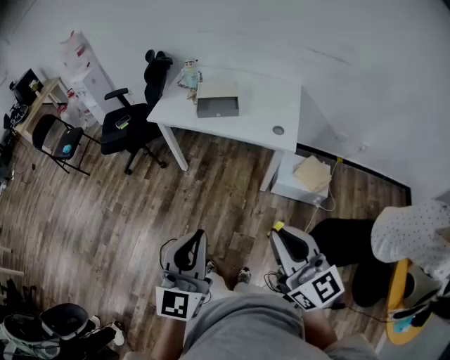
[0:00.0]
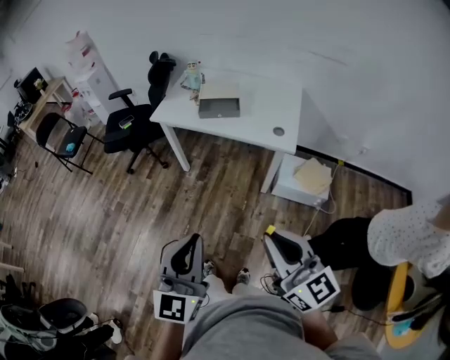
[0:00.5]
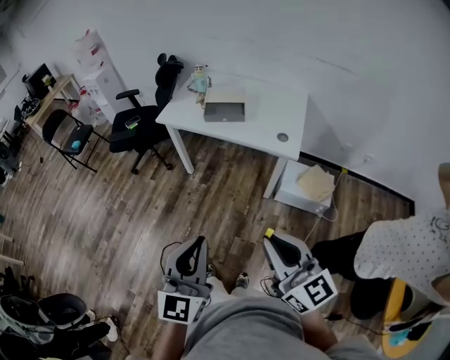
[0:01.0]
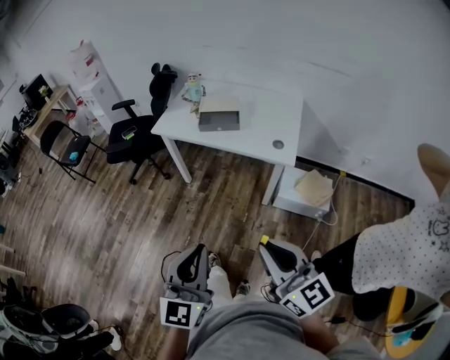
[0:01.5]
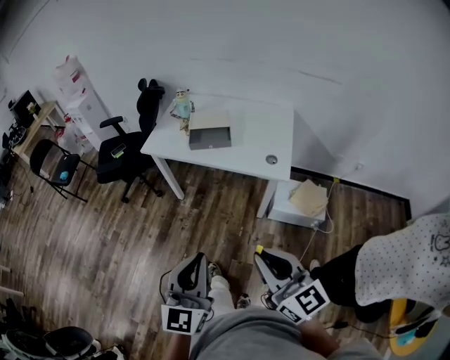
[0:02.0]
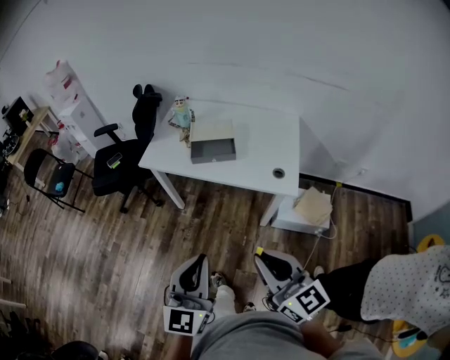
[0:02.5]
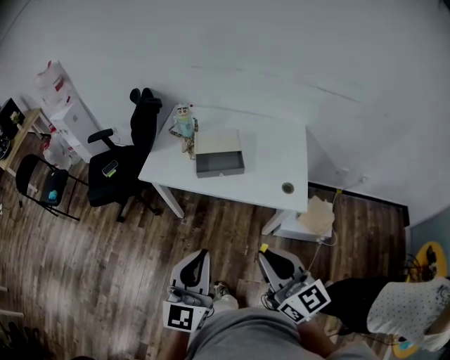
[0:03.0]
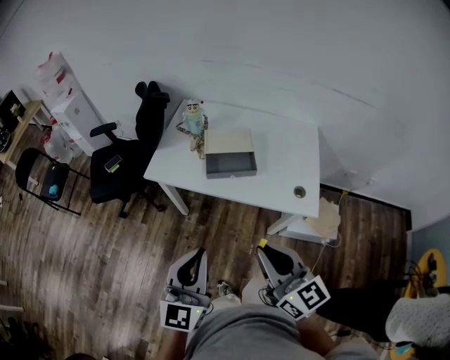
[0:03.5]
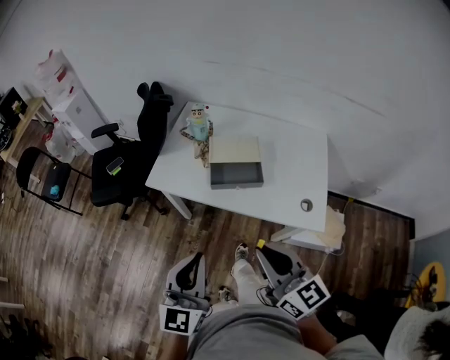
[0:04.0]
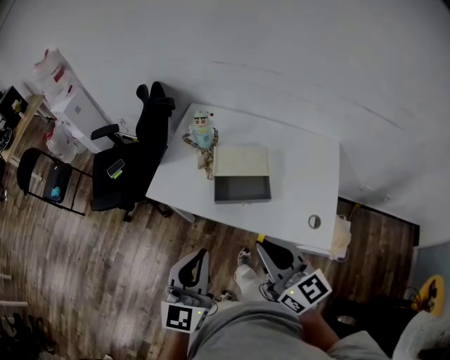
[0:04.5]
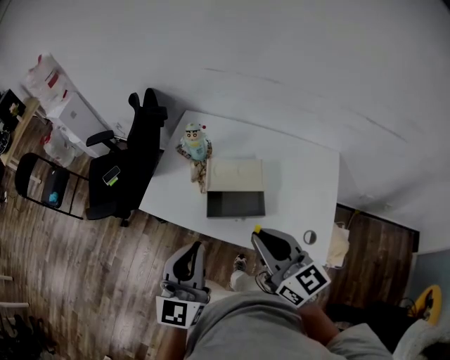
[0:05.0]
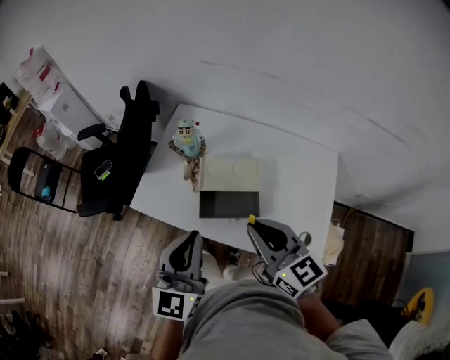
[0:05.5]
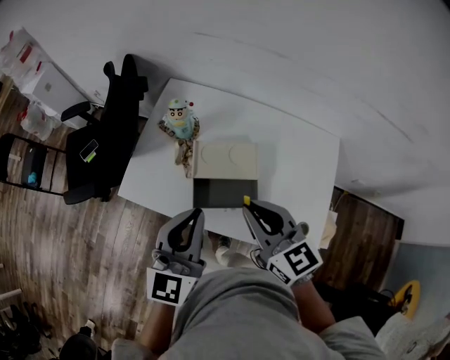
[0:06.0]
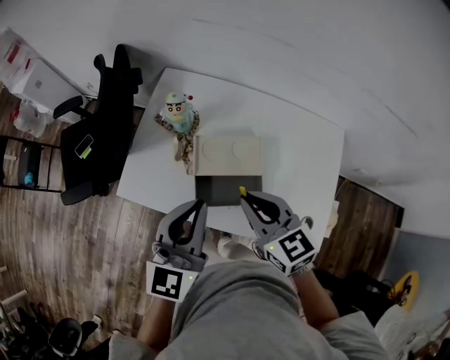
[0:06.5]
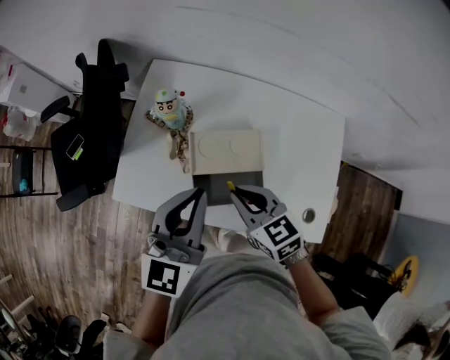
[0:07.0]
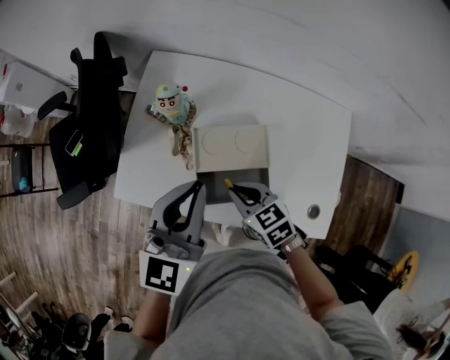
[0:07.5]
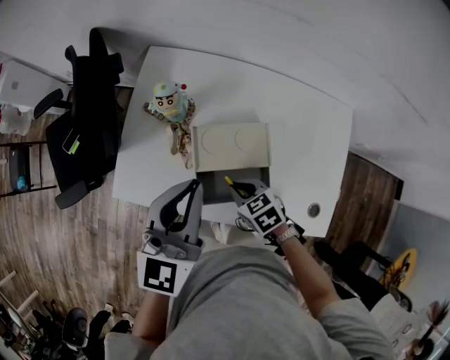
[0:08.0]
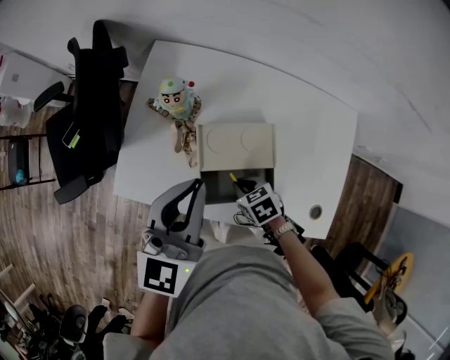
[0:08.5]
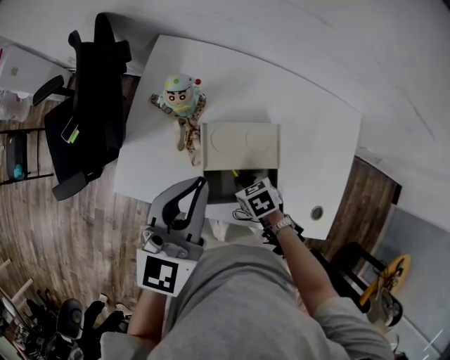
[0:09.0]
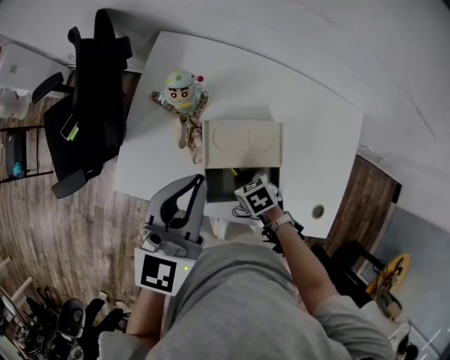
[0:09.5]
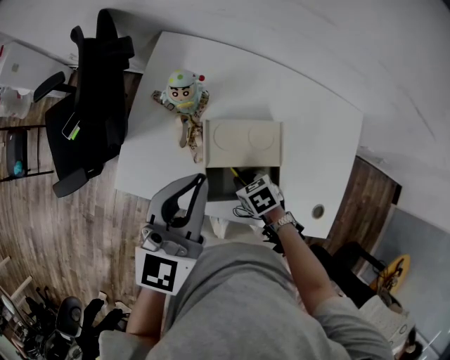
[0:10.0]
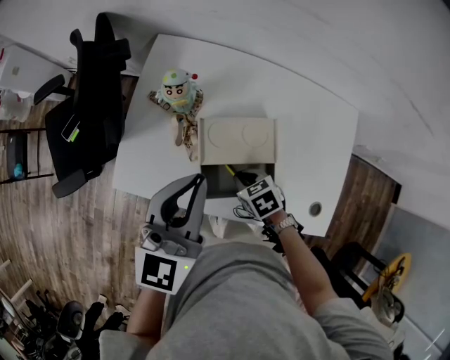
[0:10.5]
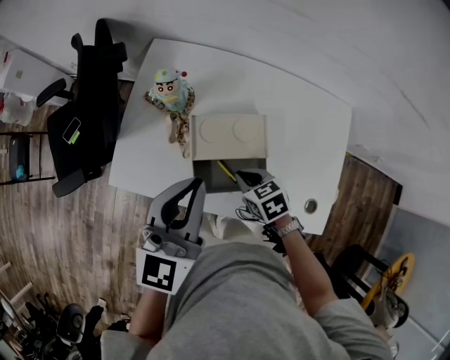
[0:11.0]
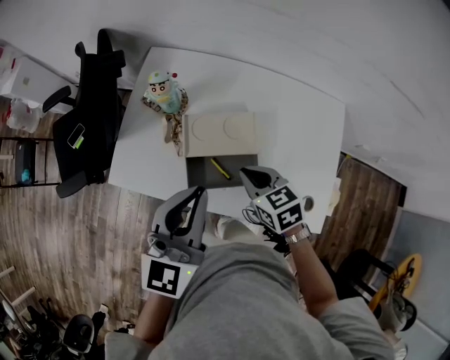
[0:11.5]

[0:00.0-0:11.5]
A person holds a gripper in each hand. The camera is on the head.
0:00.0 to 0:02.0: The left gripper changes place by roughly 5 cm. Meanwhile the right gripper moves approximately 5 cm.
0:02.0 to 0:04.0: The grippers both shift forward by approximately 35 cm.
0:04.0 to 0:06.0: The two grippers go approximately 30 cm forward.
0:06.0 to 0:07.5: The left gripper shifts about 10 cm forward. The right gripper heads downward, covering approximately 20 cm, and changes its angle by about 30 degrees.
0:07.5 to 0:09.5: The right gripper goes some 15 cm downward, and swivels some 30 degrees.
0:09.5 to 0:11.5: The left gripper is displaced backward by approximately 10 cm. Meanwhile the right gripper shifts some 15 cm upward, and turns by about 30 degrees.

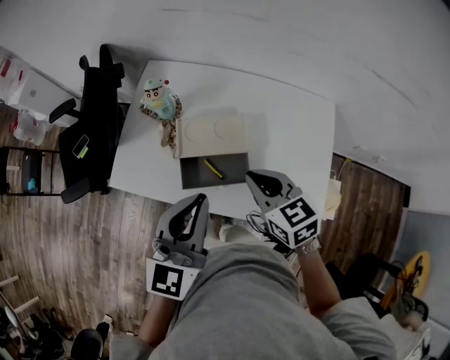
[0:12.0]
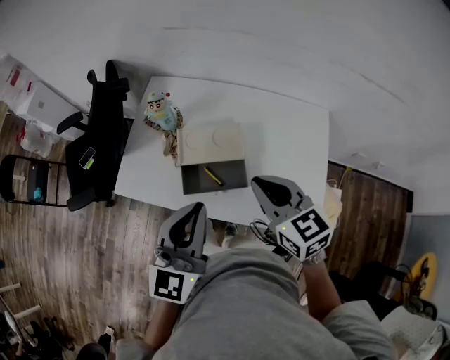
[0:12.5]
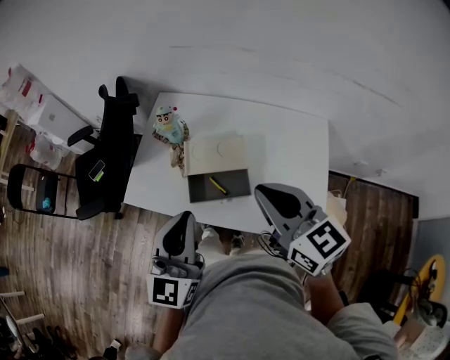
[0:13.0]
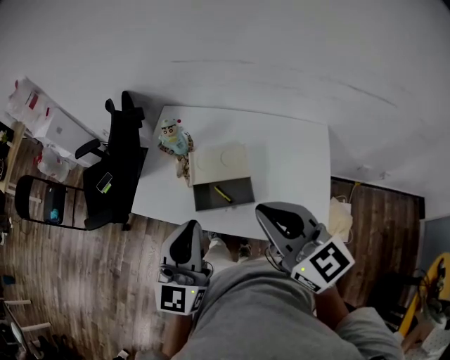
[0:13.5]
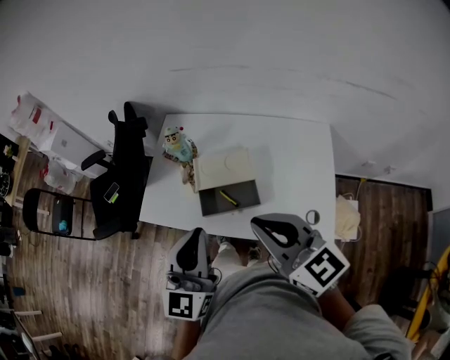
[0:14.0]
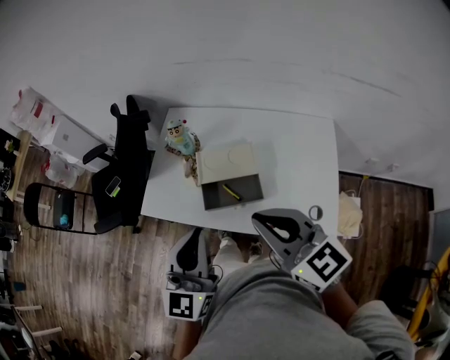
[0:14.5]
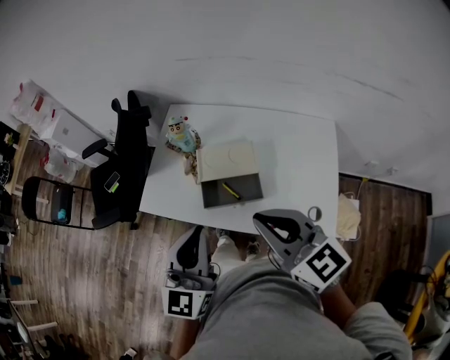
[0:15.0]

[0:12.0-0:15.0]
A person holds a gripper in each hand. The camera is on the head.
0:12.0 to 0:13.5: The left gripper moves backward and upward, roughly 10 cm. Meanwhile the right gripper moves upward and backward, some 20 cm, and turns by about 30 degrees.
0:13.5 to 0:15.0: There are only small adjustments of the grippers.

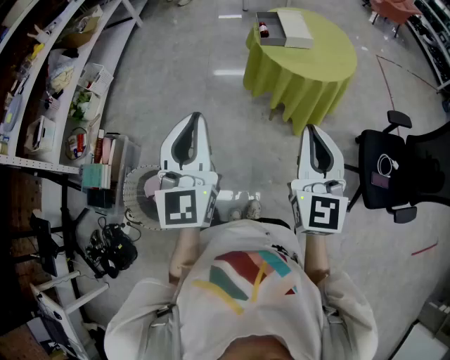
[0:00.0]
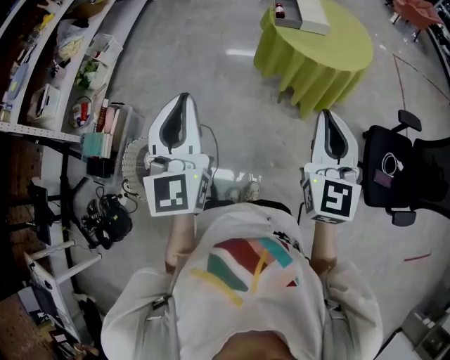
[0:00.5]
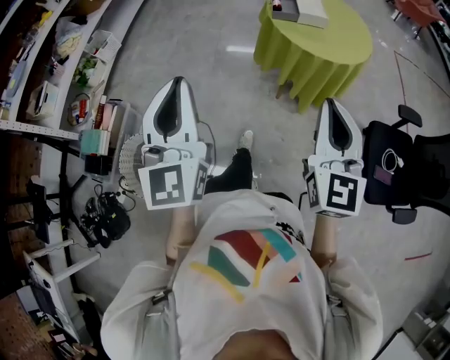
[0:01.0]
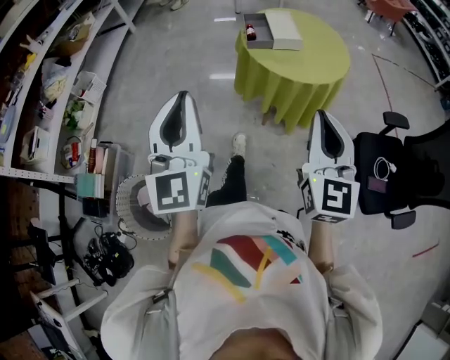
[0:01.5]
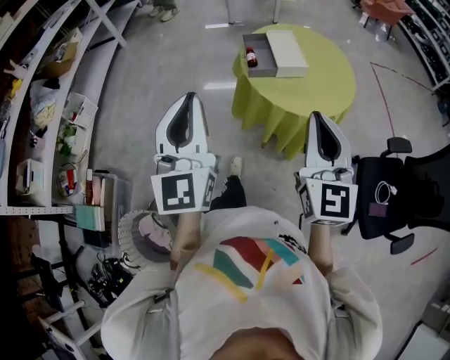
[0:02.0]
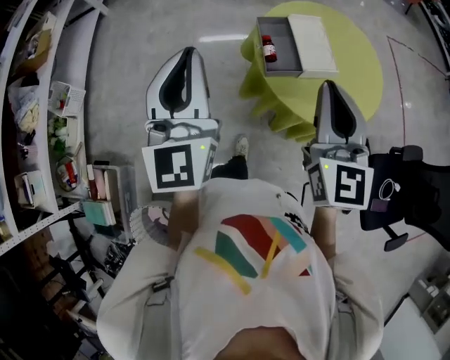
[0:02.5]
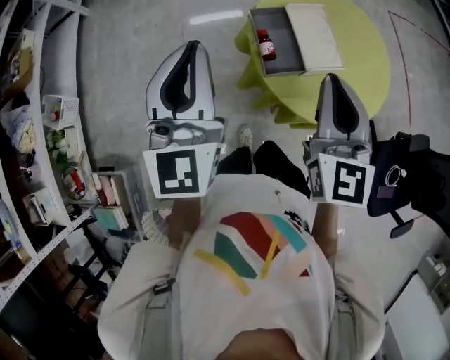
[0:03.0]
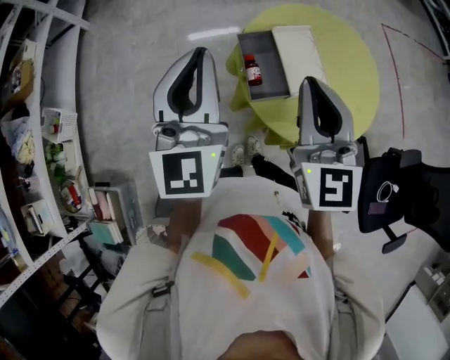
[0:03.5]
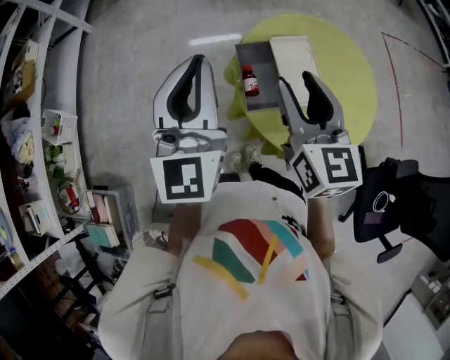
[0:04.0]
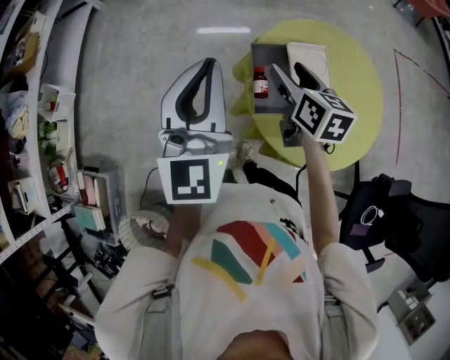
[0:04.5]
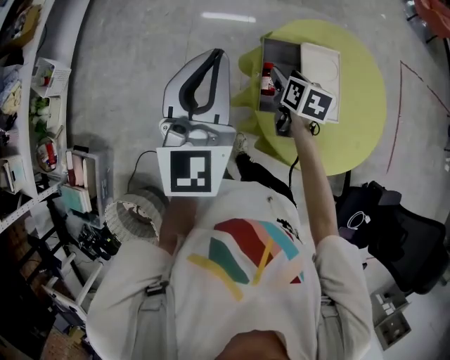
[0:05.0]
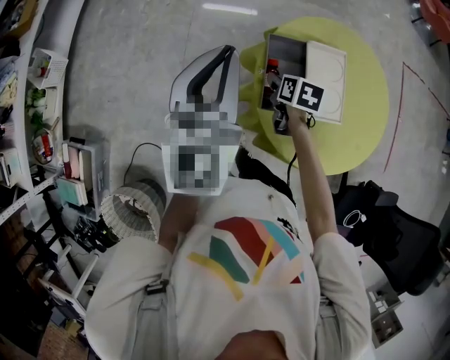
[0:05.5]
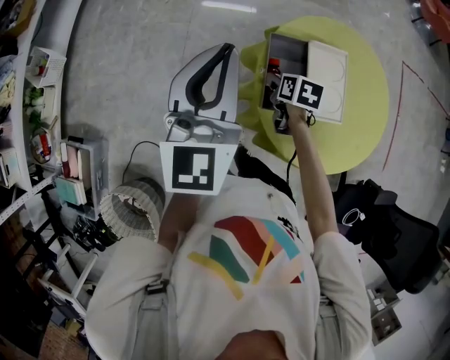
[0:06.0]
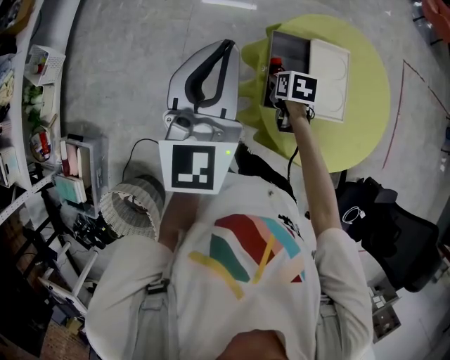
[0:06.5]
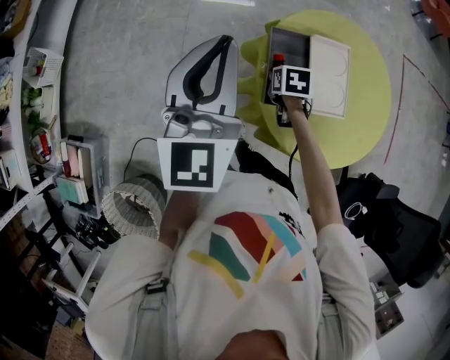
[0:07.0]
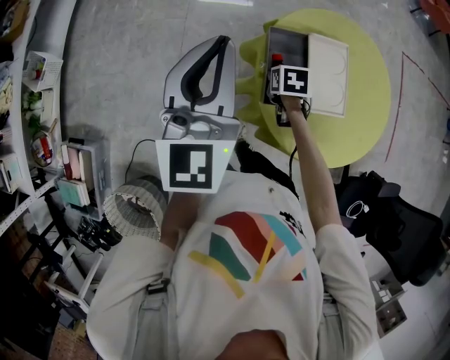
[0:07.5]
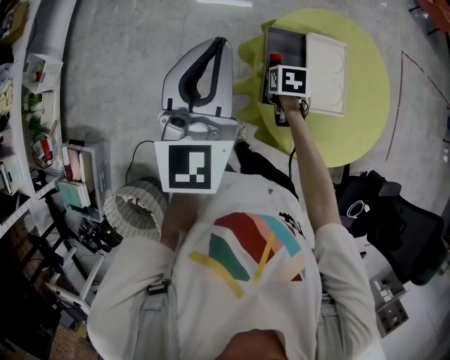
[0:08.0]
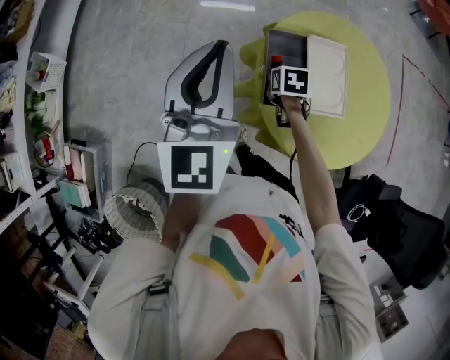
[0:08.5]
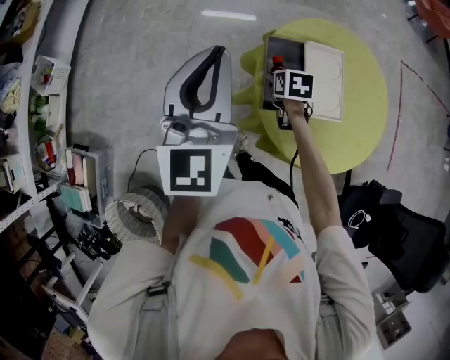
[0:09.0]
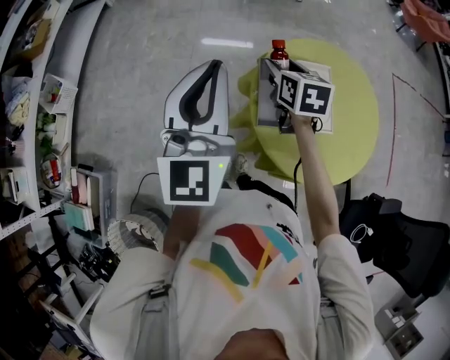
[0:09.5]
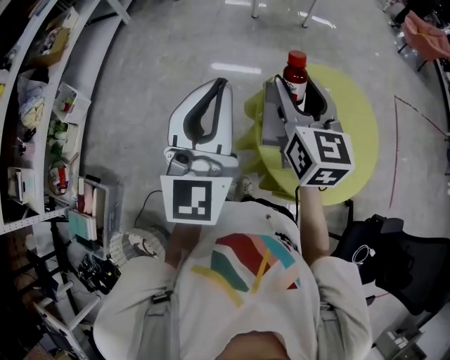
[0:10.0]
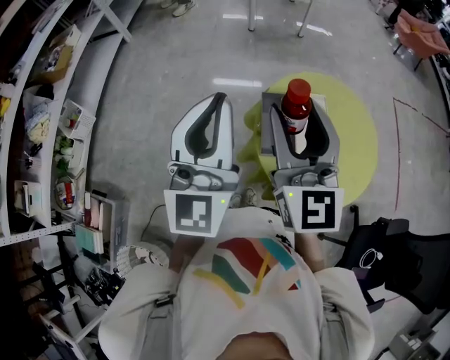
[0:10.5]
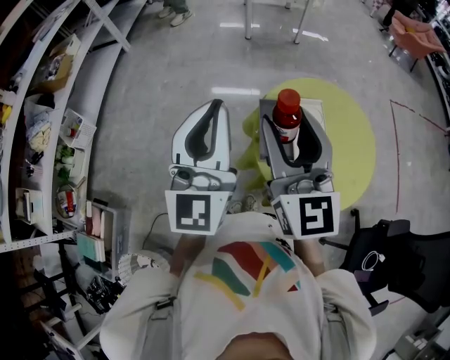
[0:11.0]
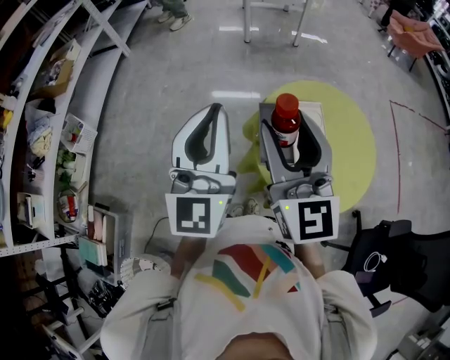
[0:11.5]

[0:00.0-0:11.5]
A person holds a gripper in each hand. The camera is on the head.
0:00.0 to 0:02.0: Both grippers move forward, some 25 cm.
0:02.0 to 0:04.0: The two grippers go about 35 cm forward. The right gripper swivels roughly 20 degrees, and opens up.
0:04.0 to 0:06.0: The right gripper moves downward, about 30 cm, and tilts its fingers approximately 50 degrees downward, while the left gripper shifts roughly 5 cm downward.
0:06.0 to 0:07.5: There are only small adjustments of the grippers.
0:07.5 to 0:09.5: The left gripper heads upward, covering roughly 5 cm, while the right gripper moves upward, some 20 cm, and tilts its fingers roughly 30 degrees upward.
0:09.5 to 0:11.5: The right gripper heads upward and backward, covering some 30 cm, and points its fingers approximately 40 degrees further upward; the left gripper is displaced upward by some 5 cm.

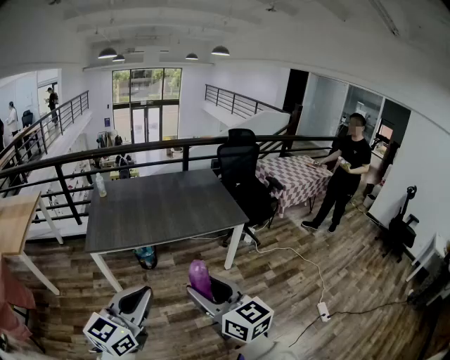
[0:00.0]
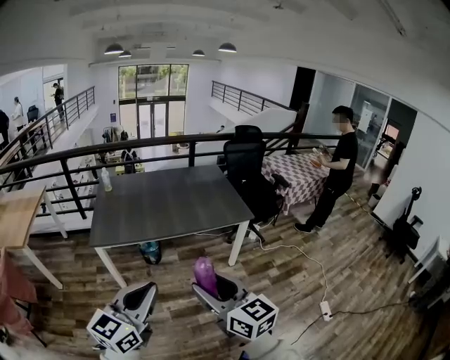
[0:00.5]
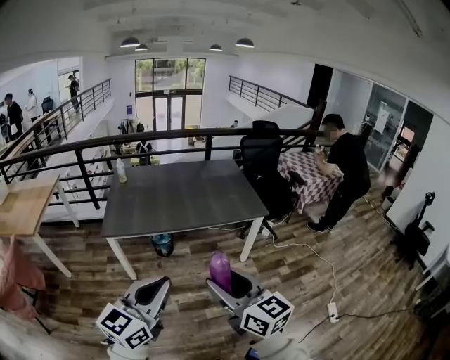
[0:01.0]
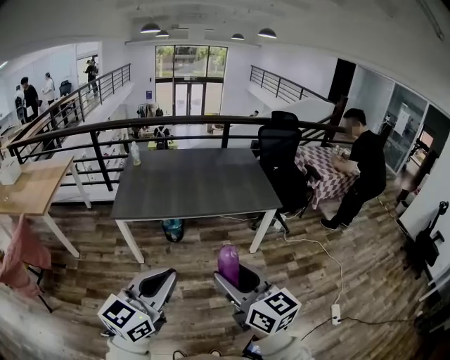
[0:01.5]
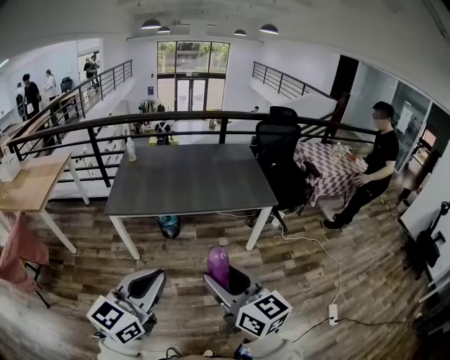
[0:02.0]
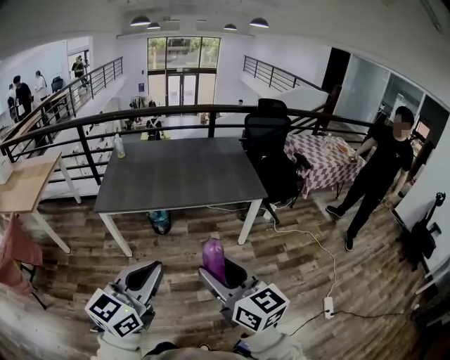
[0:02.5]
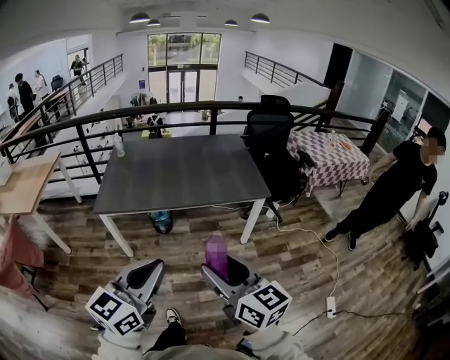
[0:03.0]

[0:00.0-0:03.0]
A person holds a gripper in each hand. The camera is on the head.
0:00.0 to 0:01.5: There are only small adjustments of the grippers.
0:01.5 to 0:03.0: The grippers both shift to the right by roughly 5 cm.
